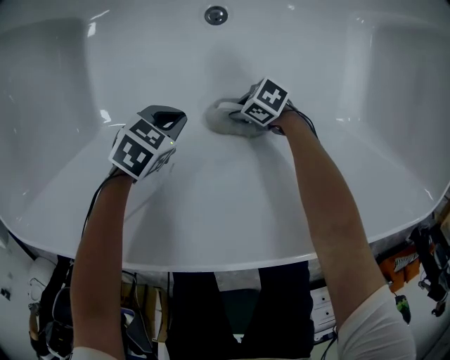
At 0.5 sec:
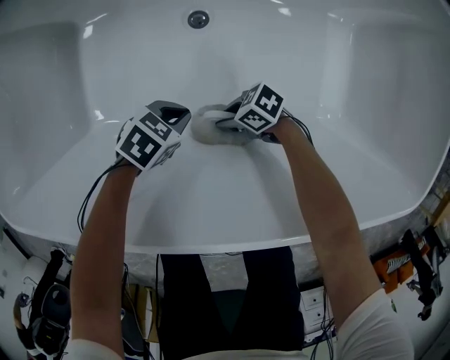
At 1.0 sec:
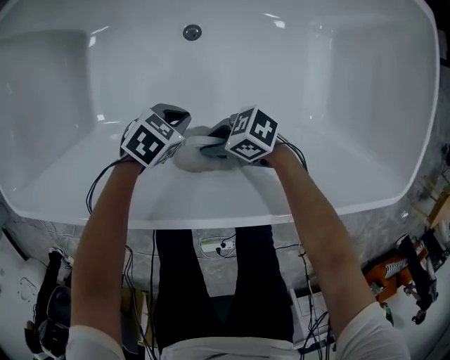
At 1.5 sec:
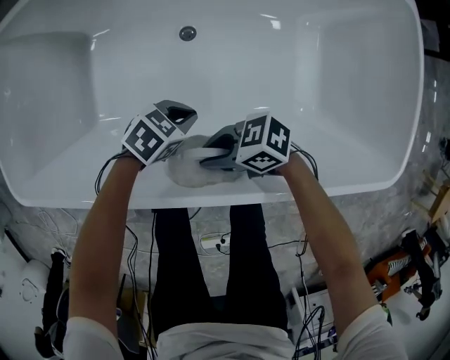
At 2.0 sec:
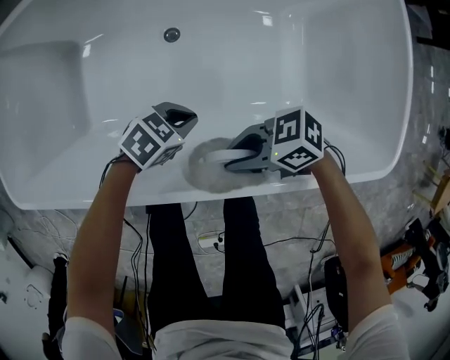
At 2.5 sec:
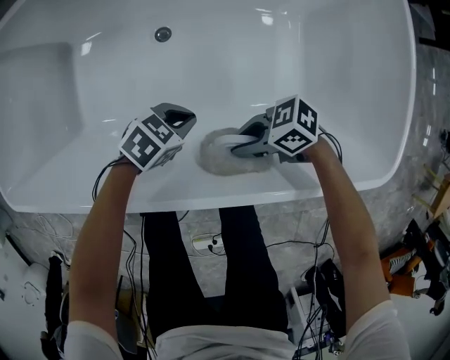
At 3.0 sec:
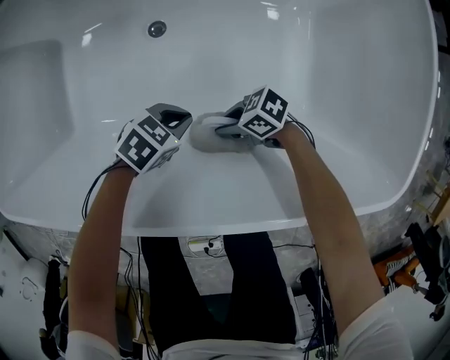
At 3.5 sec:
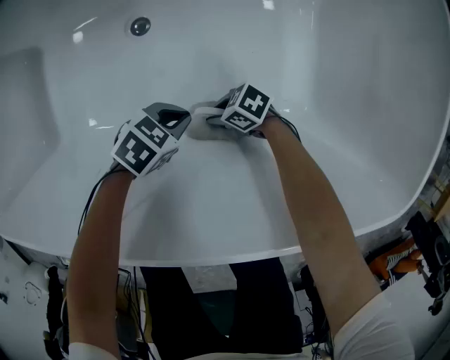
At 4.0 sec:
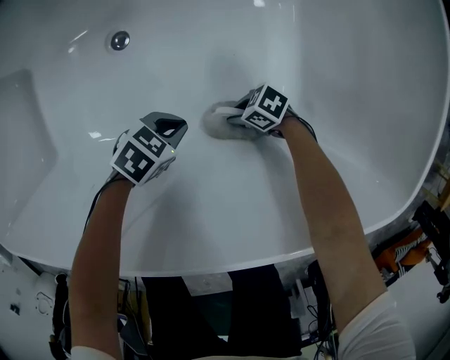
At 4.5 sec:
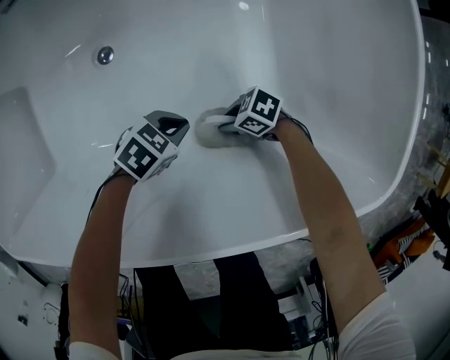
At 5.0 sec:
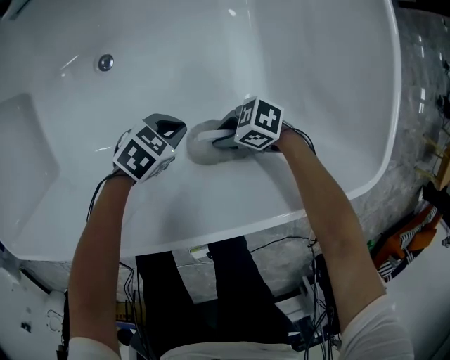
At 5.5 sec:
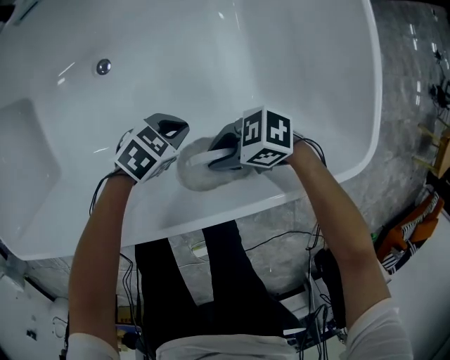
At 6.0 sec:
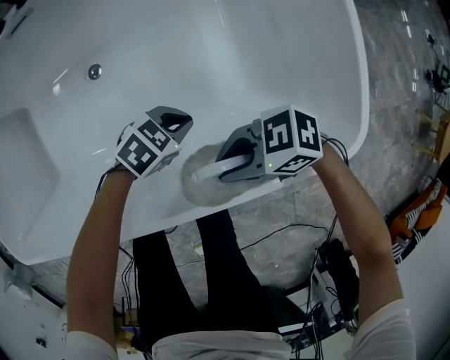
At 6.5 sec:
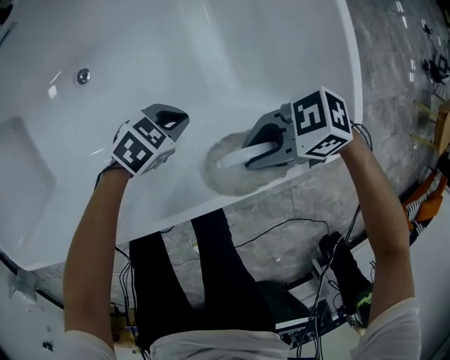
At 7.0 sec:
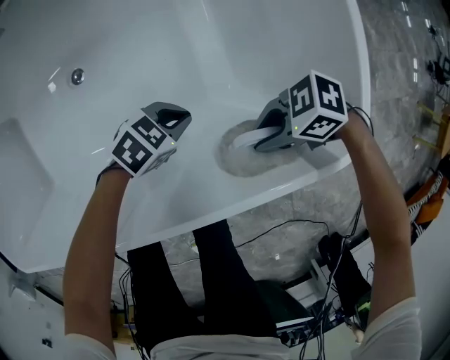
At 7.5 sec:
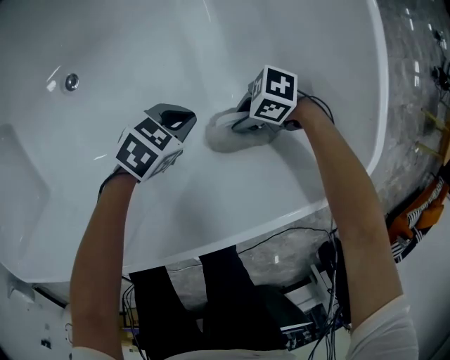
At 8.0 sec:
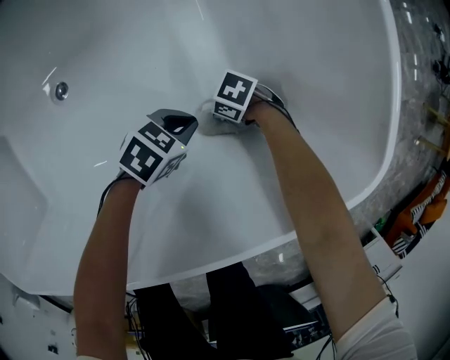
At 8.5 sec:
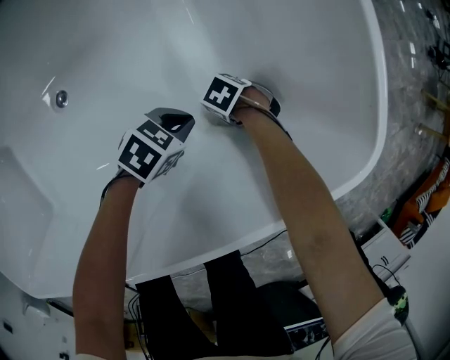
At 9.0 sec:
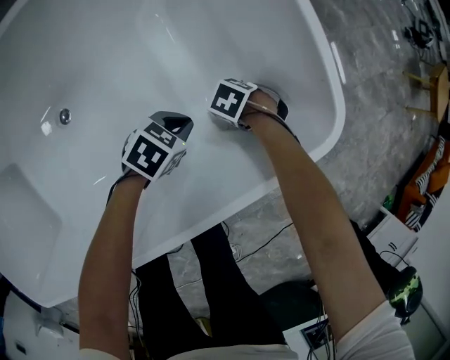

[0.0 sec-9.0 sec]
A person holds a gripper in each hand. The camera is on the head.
0.0 sec to 2.0 sec: The left gripper shifts roughly 25 cm to the left. The right gripper goes roughly 35 cm upward and to the left, and turns by some 30 degrees.
2.0 sec to 4.5 sec: The left gripper moves to the left and downward, roughly 20 cm, while the right gripper shifts approximately 35 cm downward and to the left, and rotates approximately 20 degrees.
4.5 sec to 7.0 sec: The left gripper heads to the left and upward, covering some 15 cm. Meanwhile the right gripper travels upward and to the left by roughly 30 cm.
7.0 sec to 9.0 sec: The right gripper travels downward by some 15 cm, and tilts its fingers roughly 40 degrees downward; the left gripper moves to the left, approximately 5 cm, and goes downward and returns, about 10 cm each way.

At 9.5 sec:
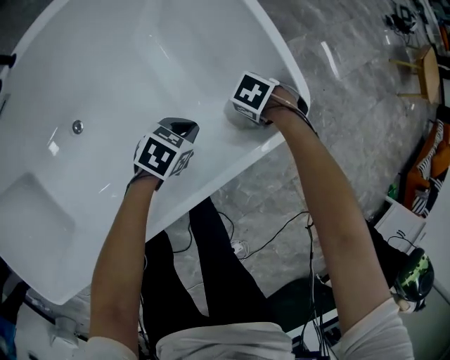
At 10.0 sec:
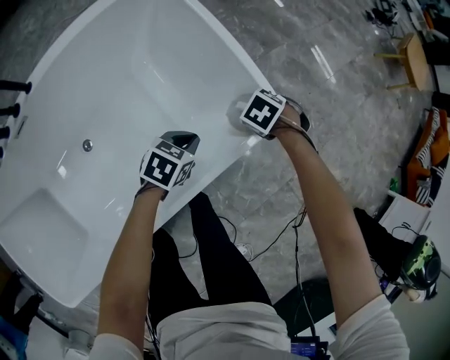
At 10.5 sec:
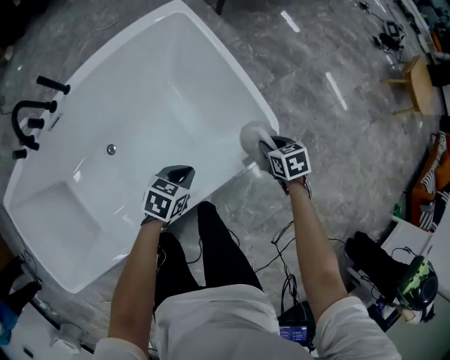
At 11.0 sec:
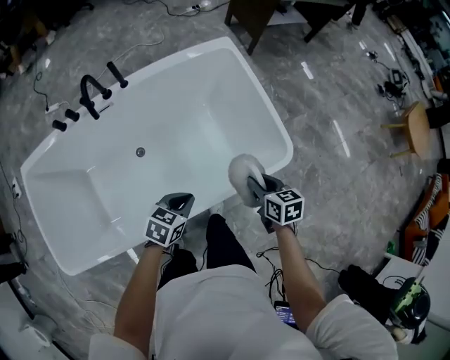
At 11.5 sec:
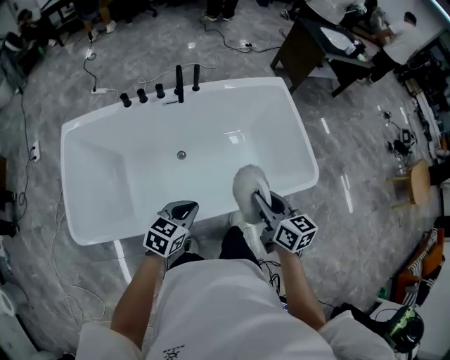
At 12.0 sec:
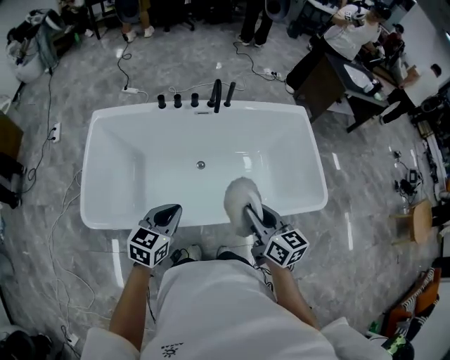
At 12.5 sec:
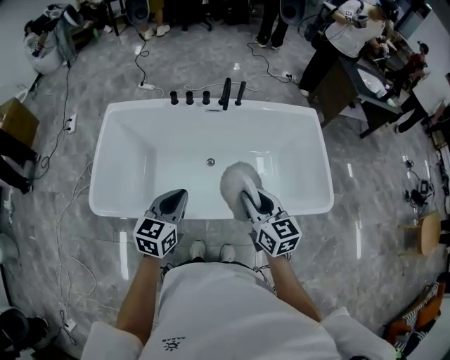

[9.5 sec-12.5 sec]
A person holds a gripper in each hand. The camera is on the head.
9.5 sec to 11.0 sec: Both grippers travel together upward, approximately 30 cm. The right gripper swivels approximately 70 degrees.
11.0 sec to 12.5 sec: The right gripper changes place by some 40 cm, and swivels approximately 40 degrees; the left gripper shifts by about 40 cm, and changes its angle by about 50 degrees.

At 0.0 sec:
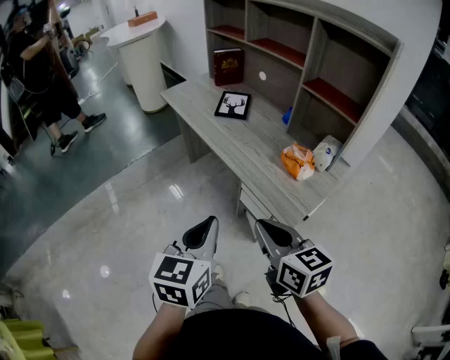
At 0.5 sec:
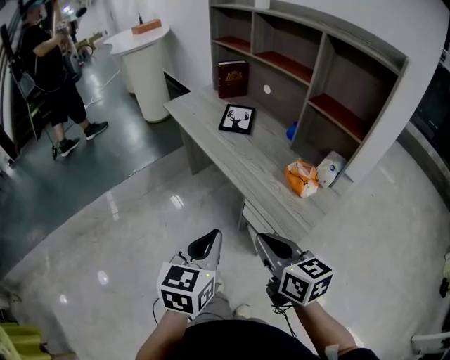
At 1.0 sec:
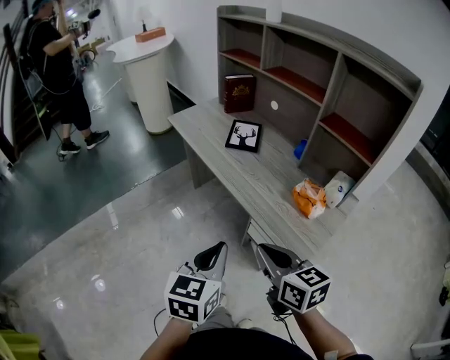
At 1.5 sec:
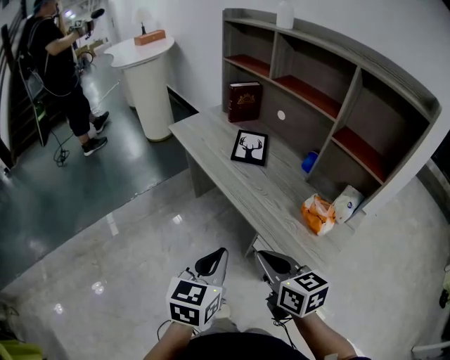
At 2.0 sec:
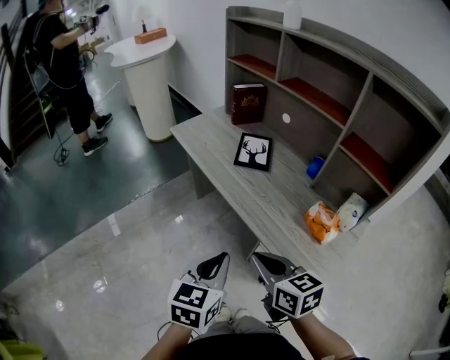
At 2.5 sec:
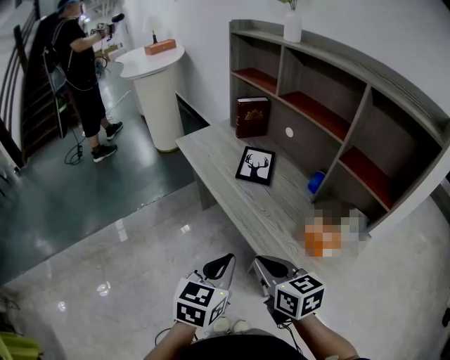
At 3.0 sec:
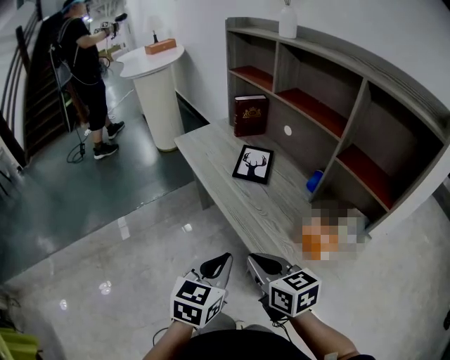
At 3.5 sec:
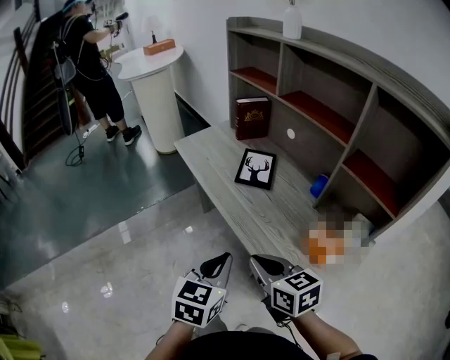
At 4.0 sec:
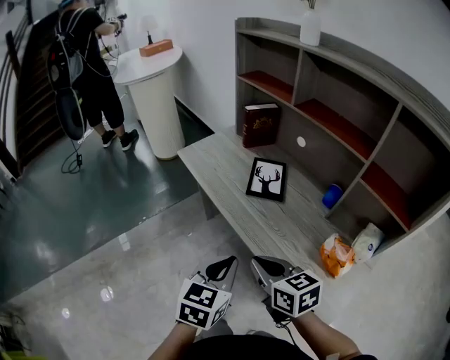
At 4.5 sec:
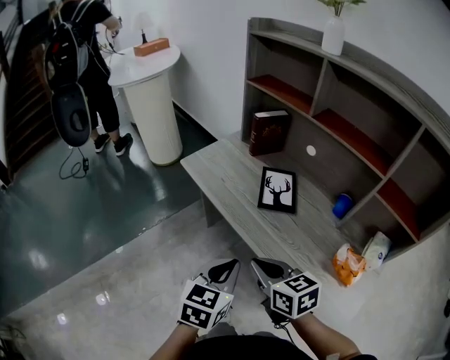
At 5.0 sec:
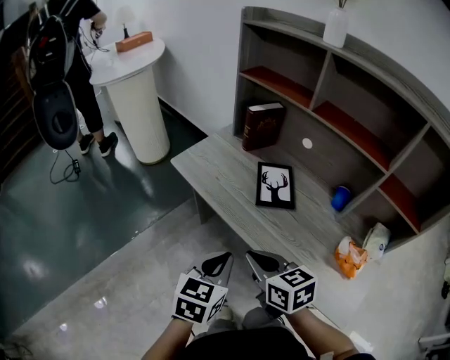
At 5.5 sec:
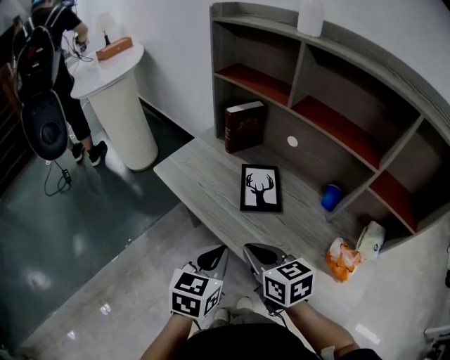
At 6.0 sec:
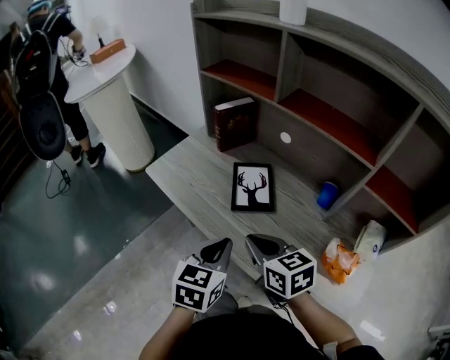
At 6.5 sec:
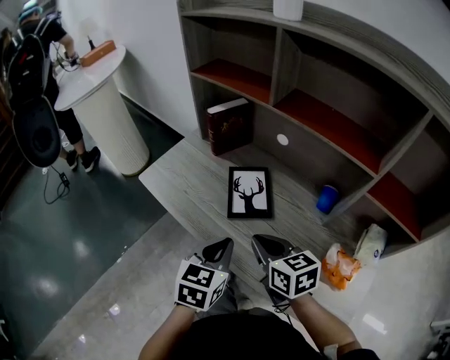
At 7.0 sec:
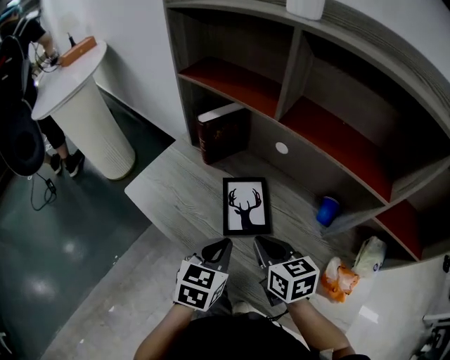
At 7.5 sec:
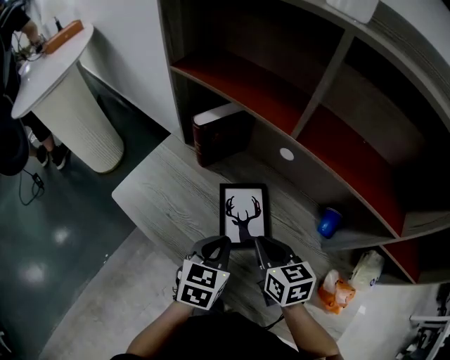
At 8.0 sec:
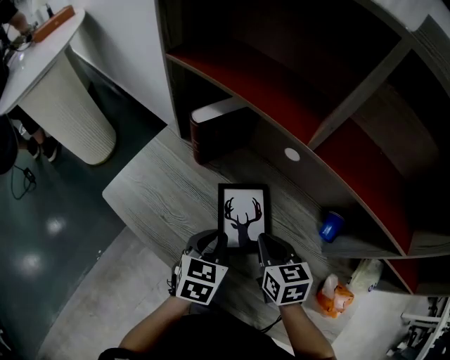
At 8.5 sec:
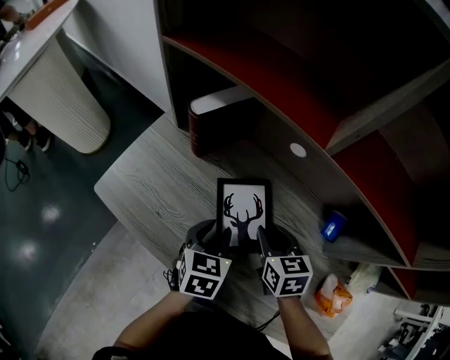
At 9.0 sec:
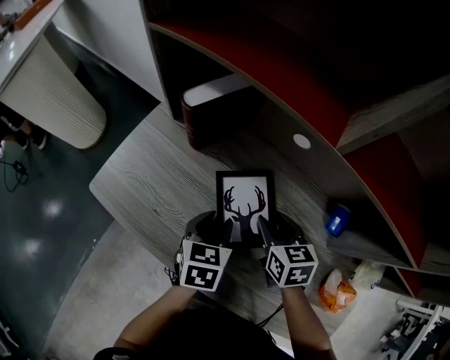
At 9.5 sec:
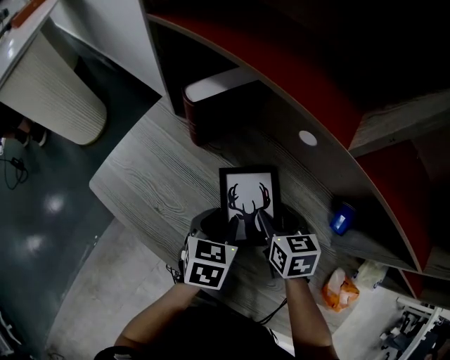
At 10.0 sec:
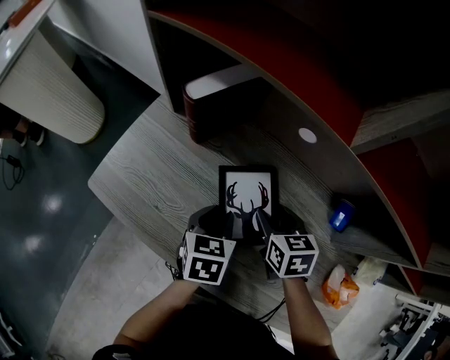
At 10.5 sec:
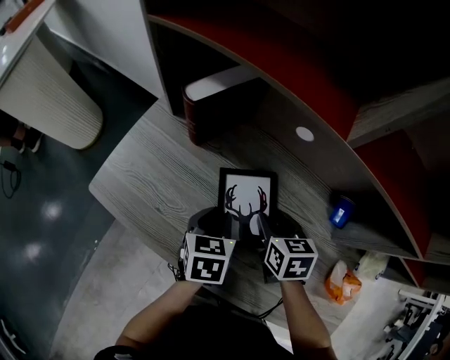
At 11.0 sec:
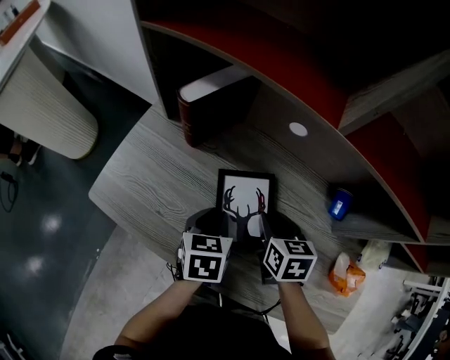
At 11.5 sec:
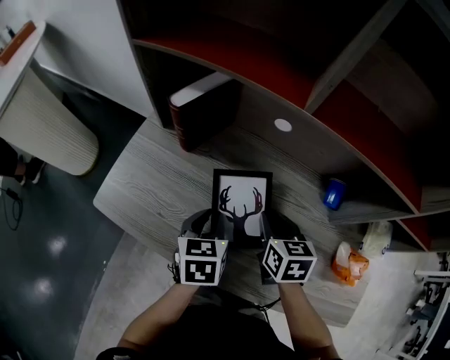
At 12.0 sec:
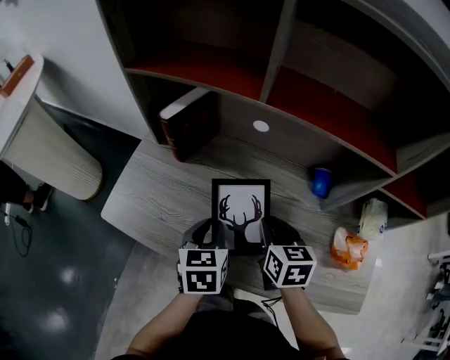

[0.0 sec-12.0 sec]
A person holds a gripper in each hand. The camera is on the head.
0.0 sec to 2.0 sec: The right gripper goes about 20 cm forward and to the left. The left gripper is displaced forward by about 15 cm.
2.0 sec to 4.0 sec: Both grippers travel together forward, about 10 cm.
4.0 sec to 6.0 sec: The grippers both shift forward by roughly 15 cm.
6.0 sec to 8.0 sec: The grippers both shift forward and downward by approximately 20 cm. The right gripper turns by about 20 degrees.
8.0 sec to 10.0 sec: The left gripper shifts by approximately 5 cm, while the right gripper shifts about 5 cm downward, and opens its fingers.
10.0 sec to 12.0 sec: The right gripper is displaced backward and upward by approximately 10 cm, rotates some 20 degrees, and closes its fingers; the left gripper travels upward and backward by roughly 10 cm.

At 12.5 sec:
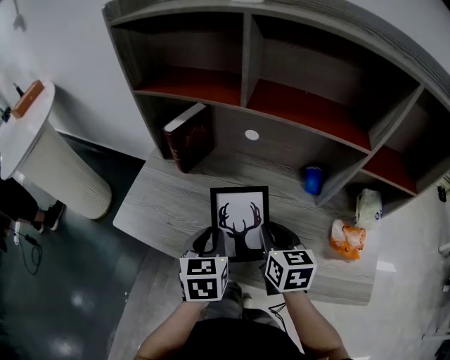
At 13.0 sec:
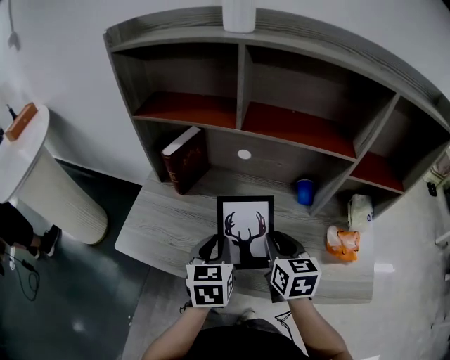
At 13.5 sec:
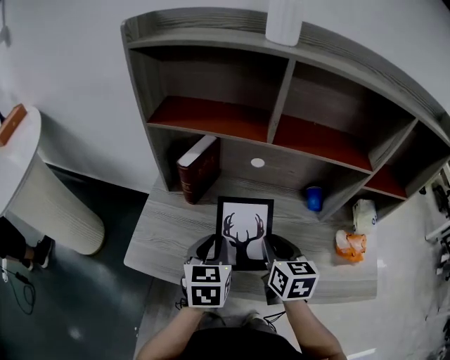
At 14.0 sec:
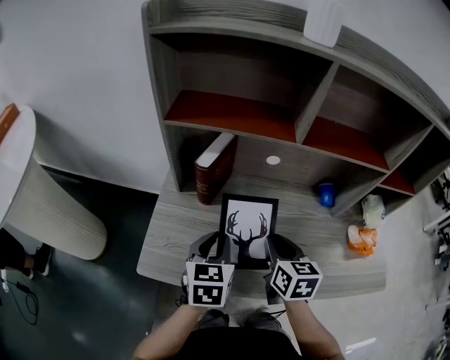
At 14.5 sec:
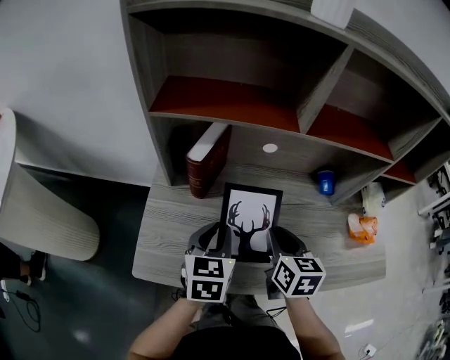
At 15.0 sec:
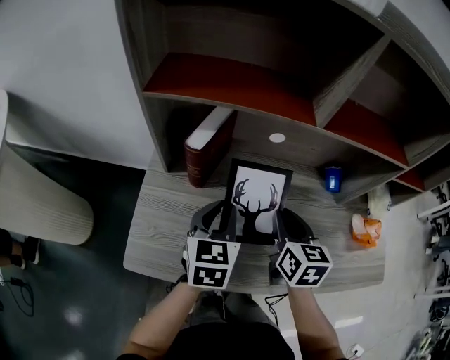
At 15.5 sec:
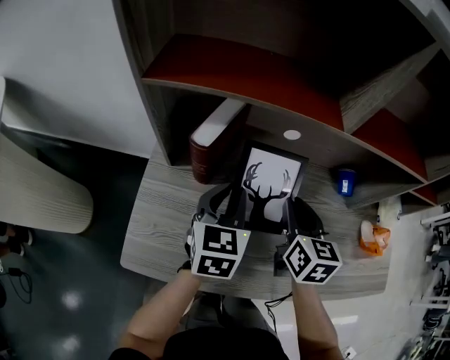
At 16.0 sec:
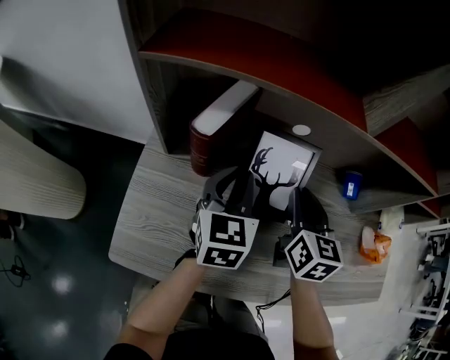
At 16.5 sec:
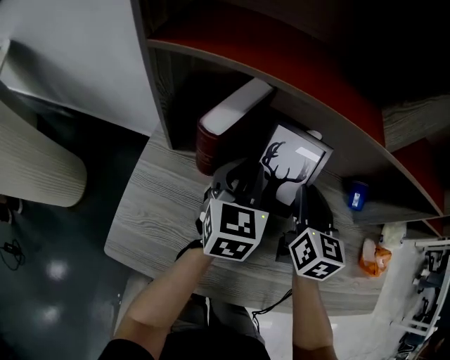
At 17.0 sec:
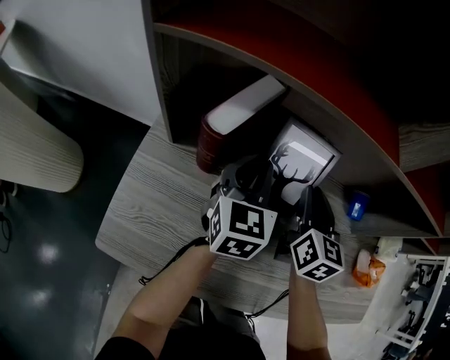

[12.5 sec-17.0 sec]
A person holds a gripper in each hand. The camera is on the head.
12.5 sec to 14.5 sec: The right gripper is displaced to the left by some 10 cm; the left gripper travels to the left and forward by roughly 15 cm, and turns by approximately 20 degrees.
14.5 sec to 17.0 sec: The two grippers go some 15 cm forward.
